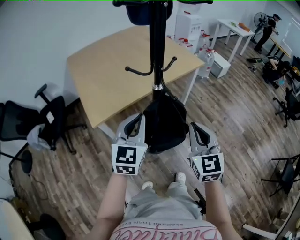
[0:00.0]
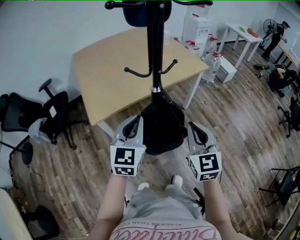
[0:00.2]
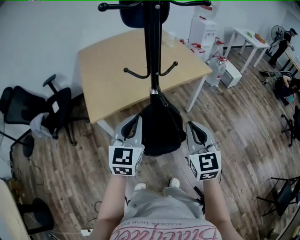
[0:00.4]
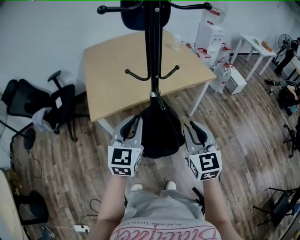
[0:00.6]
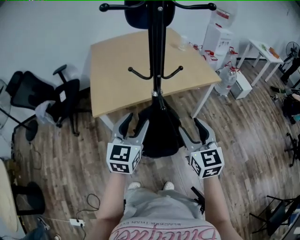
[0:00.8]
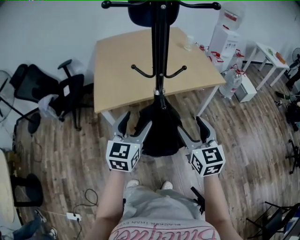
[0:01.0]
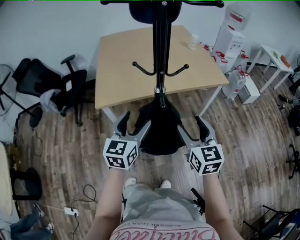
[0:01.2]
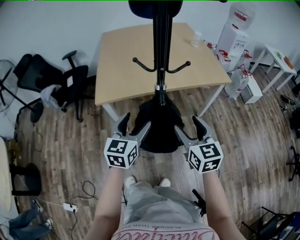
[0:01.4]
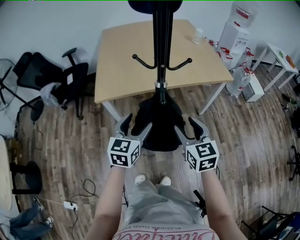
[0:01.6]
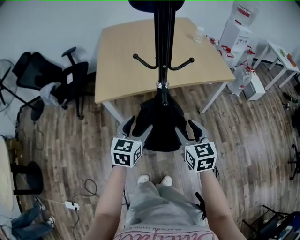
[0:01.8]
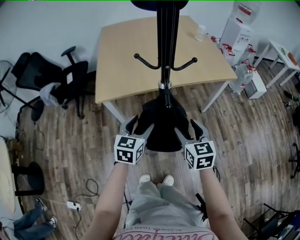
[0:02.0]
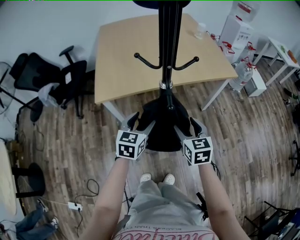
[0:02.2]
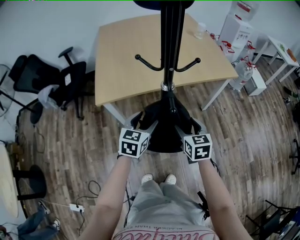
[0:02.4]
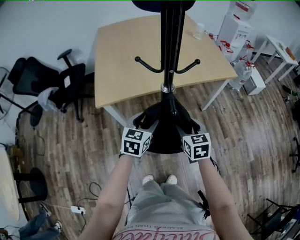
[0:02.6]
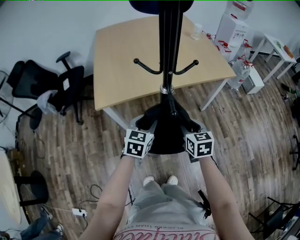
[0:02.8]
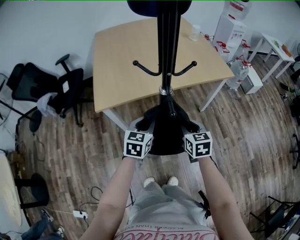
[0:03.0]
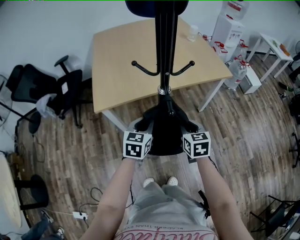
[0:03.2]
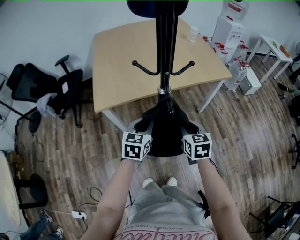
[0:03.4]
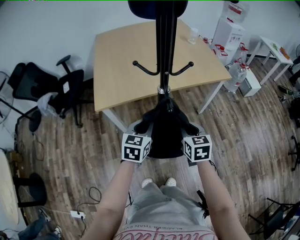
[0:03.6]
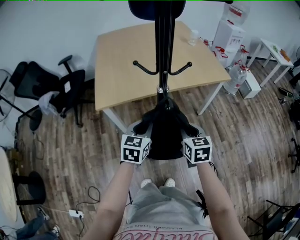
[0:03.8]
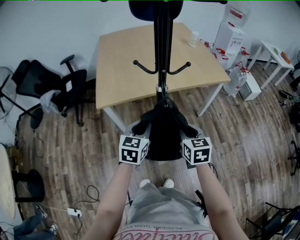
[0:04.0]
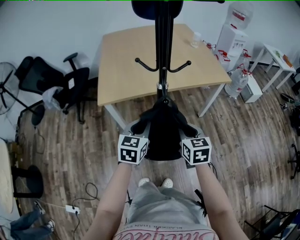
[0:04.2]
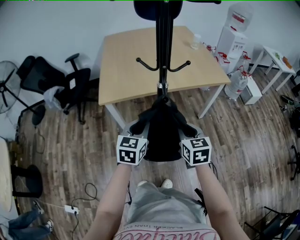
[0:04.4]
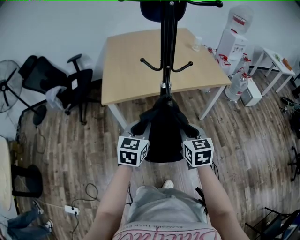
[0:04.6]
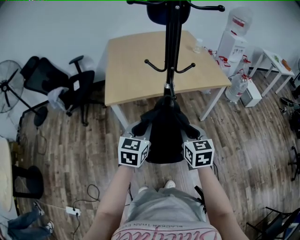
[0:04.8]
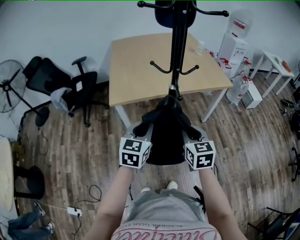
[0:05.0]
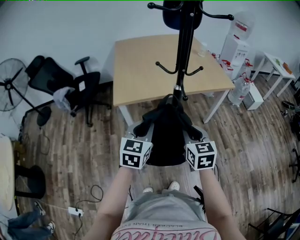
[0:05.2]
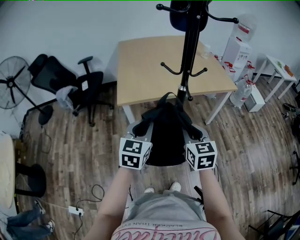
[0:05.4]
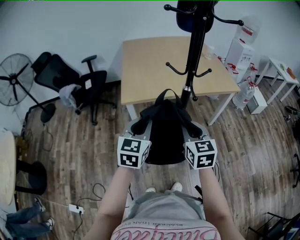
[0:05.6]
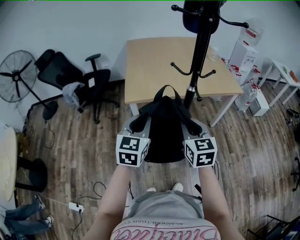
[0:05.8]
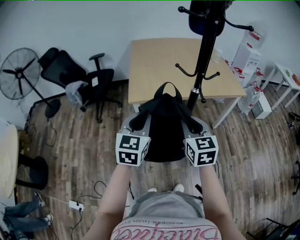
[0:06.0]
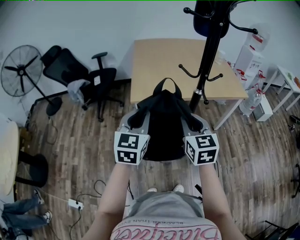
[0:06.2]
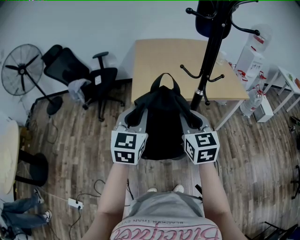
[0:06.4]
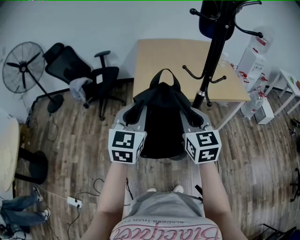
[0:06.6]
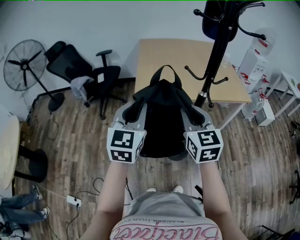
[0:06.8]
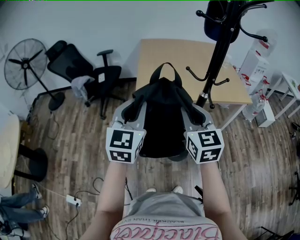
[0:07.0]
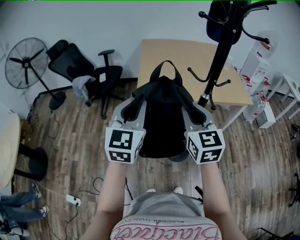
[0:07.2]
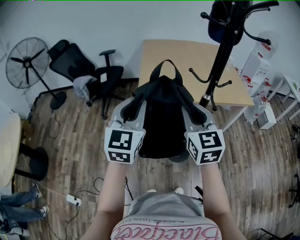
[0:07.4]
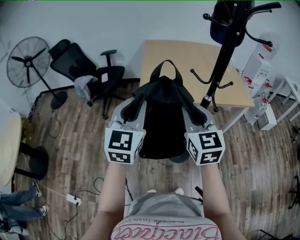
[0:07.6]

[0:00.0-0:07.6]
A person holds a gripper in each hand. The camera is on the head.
0:00.0 to 0:01.6: The right gripper travels forward and downward by some 10 cm, turns by roughly 30 degrees, and opens up. The left gripper heads downward, covering about 10 cm, turns by about 30 degrees, and opens.
0:01.6 to 0:03.0: The two grippers go approximately 10 cm downward and forward. The left gripper closes, while the right gripper closes up.
0:03.0 to 0:04.6: Both grippers travel together backward and upward, about 10 cm.
0:04.6 to 0:06.0: Both grippers move to the left and upward, about 15 cm.
0:06.0 to 0:07.6: The grippers both shift upward and to the left by about 10 cm.

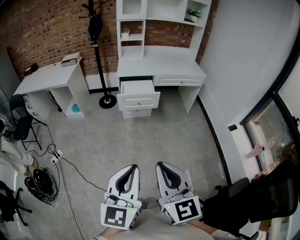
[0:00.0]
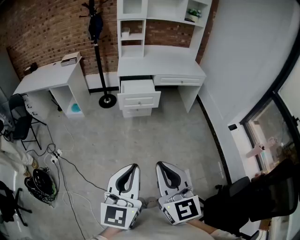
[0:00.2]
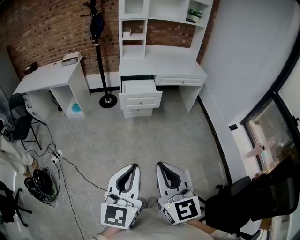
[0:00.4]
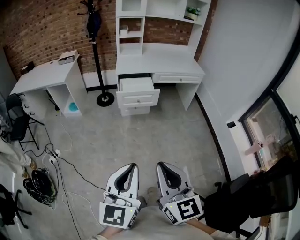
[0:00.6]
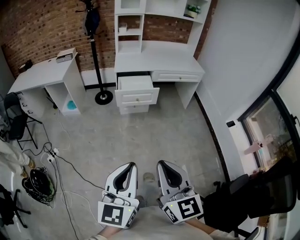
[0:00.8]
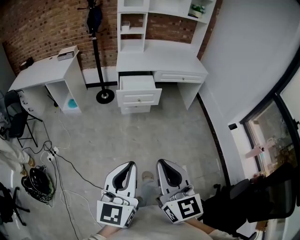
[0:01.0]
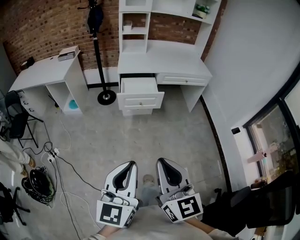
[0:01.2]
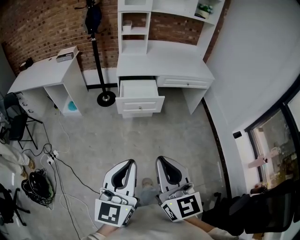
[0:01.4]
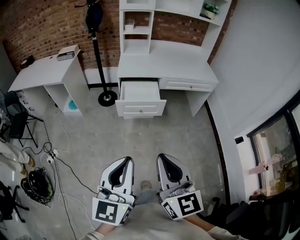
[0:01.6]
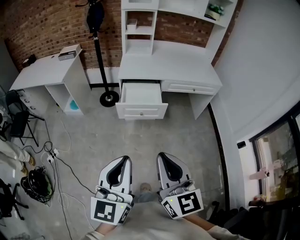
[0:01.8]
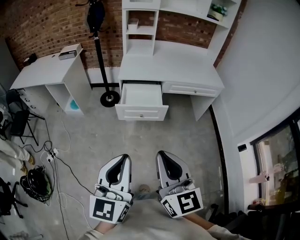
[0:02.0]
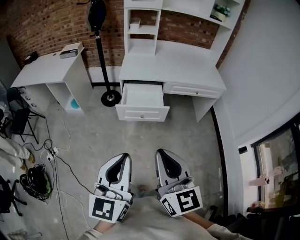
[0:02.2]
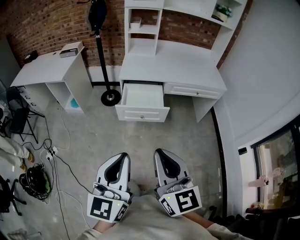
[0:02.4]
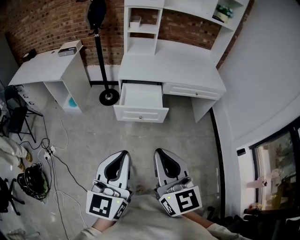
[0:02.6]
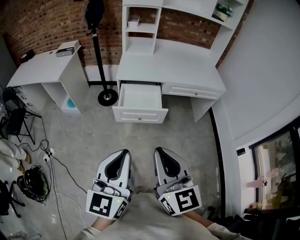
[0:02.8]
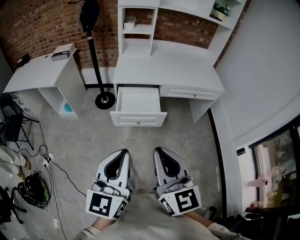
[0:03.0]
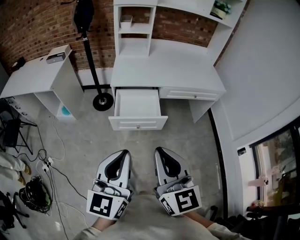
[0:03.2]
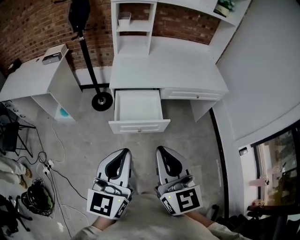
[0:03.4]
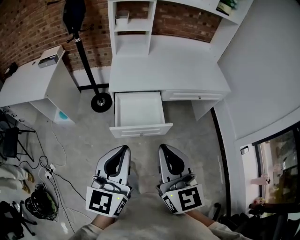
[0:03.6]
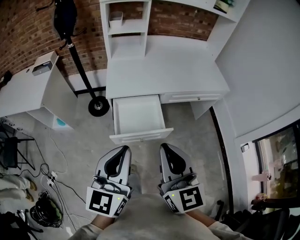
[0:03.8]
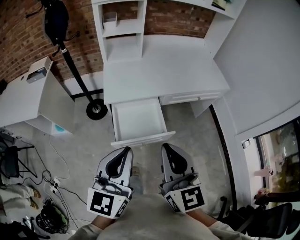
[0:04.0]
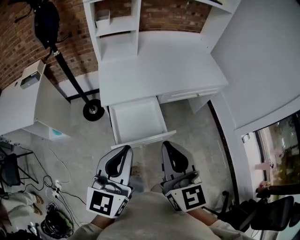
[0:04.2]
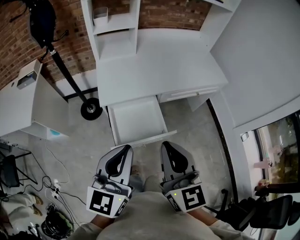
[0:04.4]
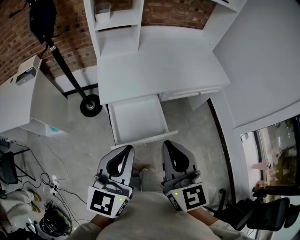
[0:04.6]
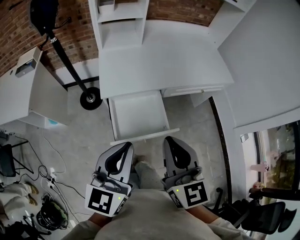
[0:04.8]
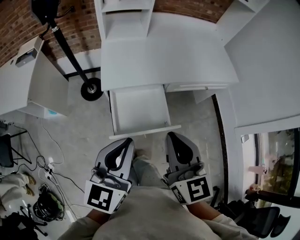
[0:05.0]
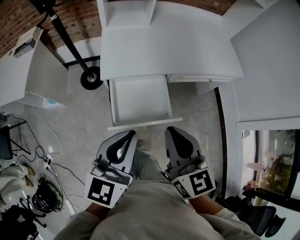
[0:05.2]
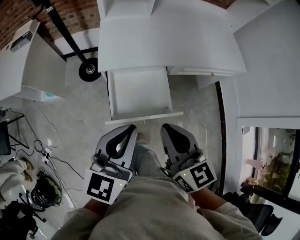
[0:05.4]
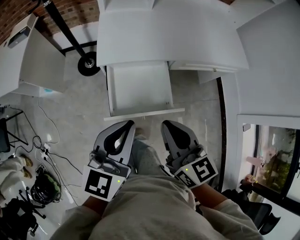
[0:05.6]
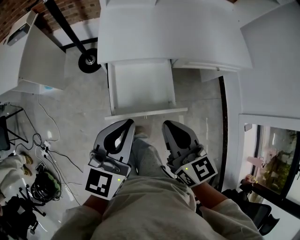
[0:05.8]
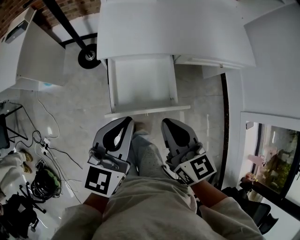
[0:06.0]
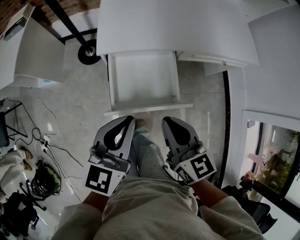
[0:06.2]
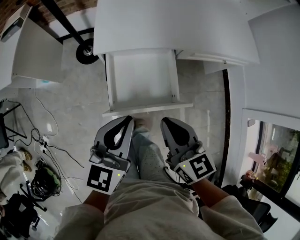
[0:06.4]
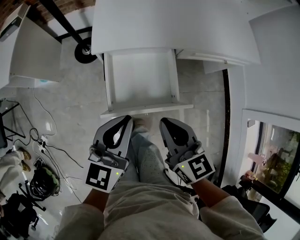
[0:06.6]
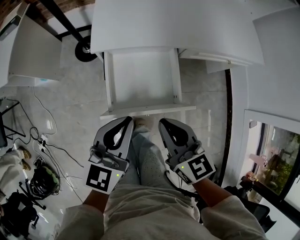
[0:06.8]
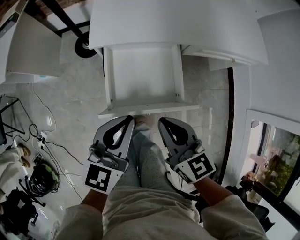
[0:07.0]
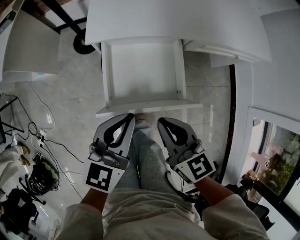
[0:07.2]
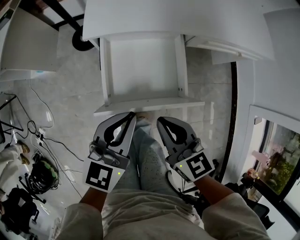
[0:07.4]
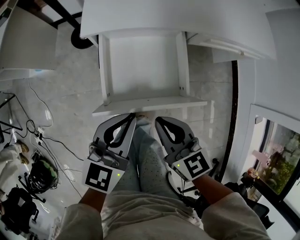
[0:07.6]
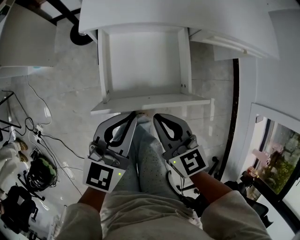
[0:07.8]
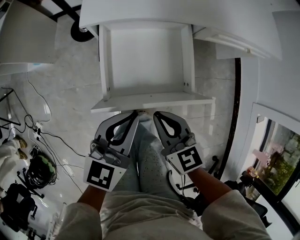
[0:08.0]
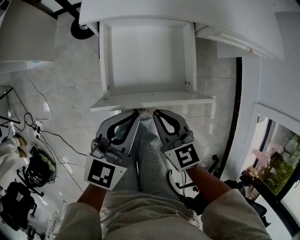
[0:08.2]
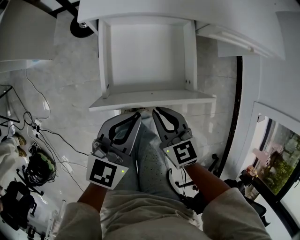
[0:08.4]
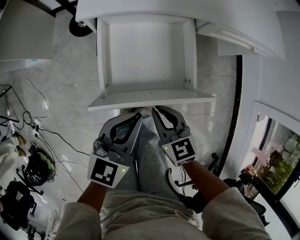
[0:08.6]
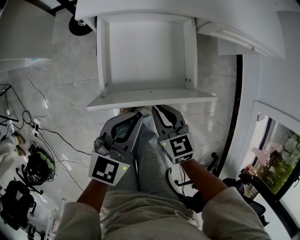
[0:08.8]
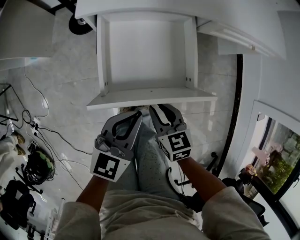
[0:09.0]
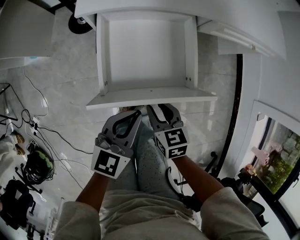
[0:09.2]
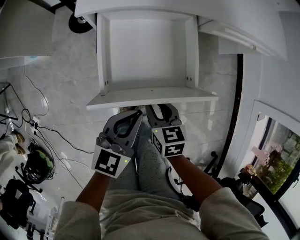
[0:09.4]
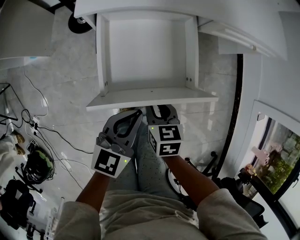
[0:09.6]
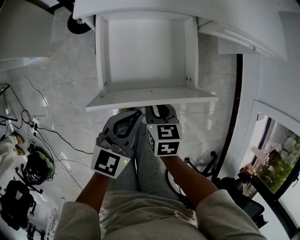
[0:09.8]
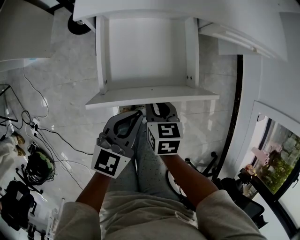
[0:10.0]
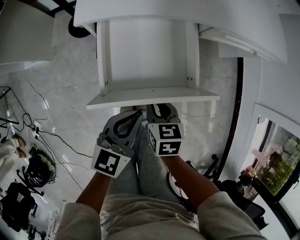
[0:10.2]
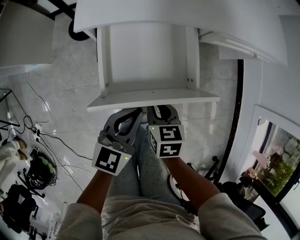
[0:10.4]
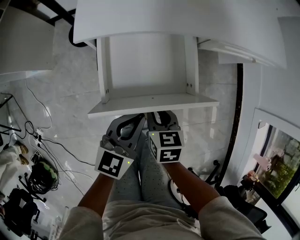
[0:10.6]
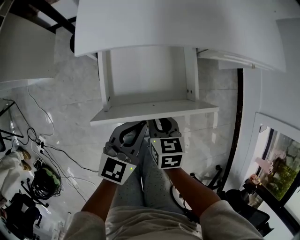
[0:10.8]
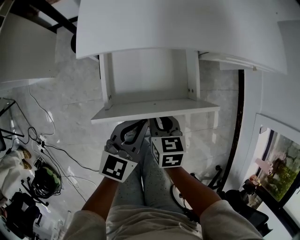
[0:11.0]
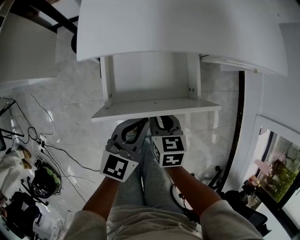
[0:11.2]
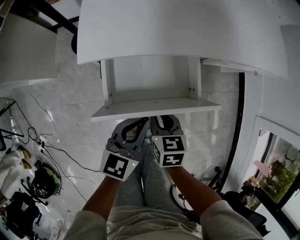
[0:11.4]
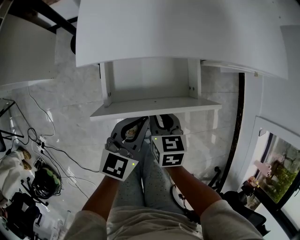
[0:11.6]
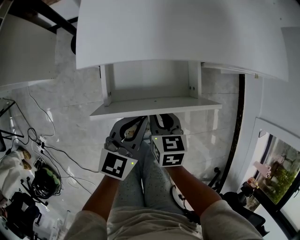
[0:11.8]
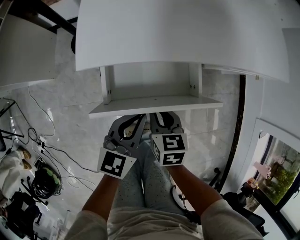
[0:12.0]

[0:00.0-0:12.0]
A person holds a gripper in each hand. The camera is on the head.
0:00.0 to 0:01.6: The two grippers go about 25 cm forward.
0:01.6 to 0:03.0: Both grippers move forward, roughly 15 cm.
0:03.0 to 0:04.4: Both grippers move forward, some 30 cm.
0:04.4 to 0:06.0: The right gripper shifts some 15 cm downward, and changes its angle by about 30 degrees. The left gripper shifts roughly 15 cm downward and forward.
0:06.0 to 0:07.6: The grippers both shift downward by some 15 cm.
0:07.6 to 0:09.0: The right gripper shifts roughly 15 cm downward; the left gripper travels downward by roughly 10 cm.
0:09.0 to 0:10.4: Both grippers travel together forward, some 5 cm.
0:10.4 to 0:12.0: Both grippers move forward, some 10 cm.

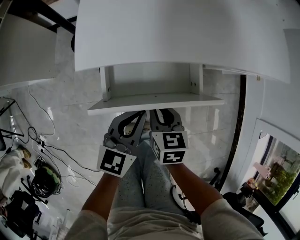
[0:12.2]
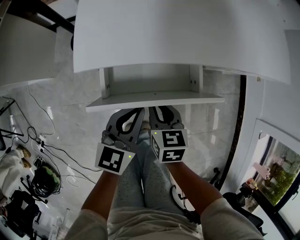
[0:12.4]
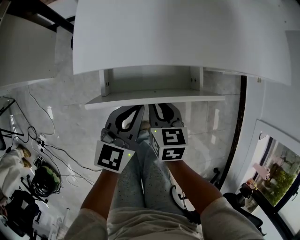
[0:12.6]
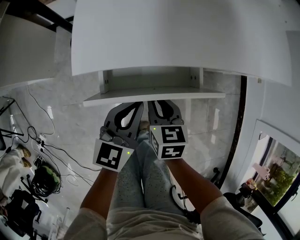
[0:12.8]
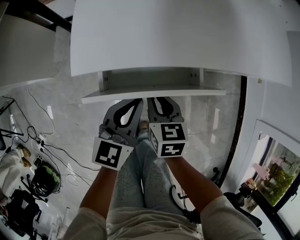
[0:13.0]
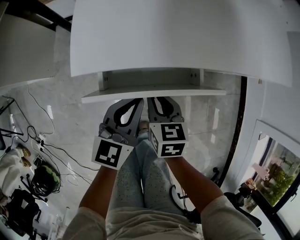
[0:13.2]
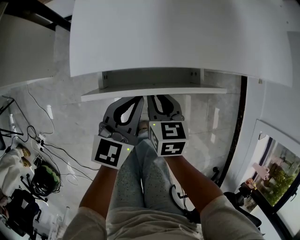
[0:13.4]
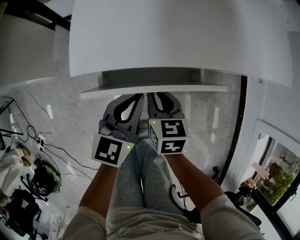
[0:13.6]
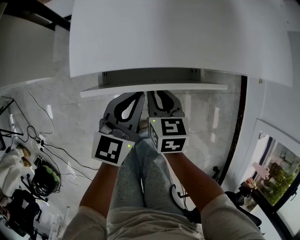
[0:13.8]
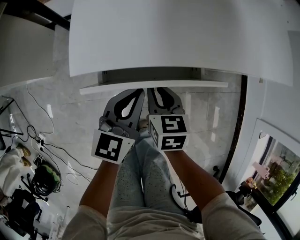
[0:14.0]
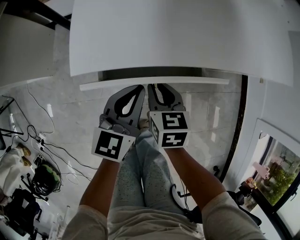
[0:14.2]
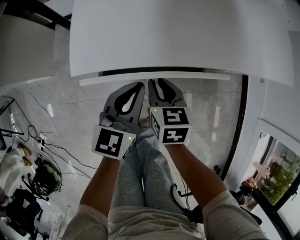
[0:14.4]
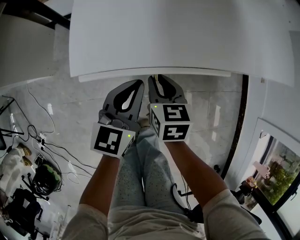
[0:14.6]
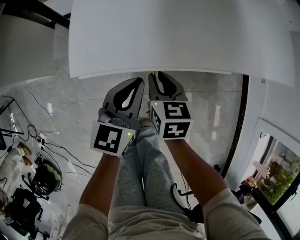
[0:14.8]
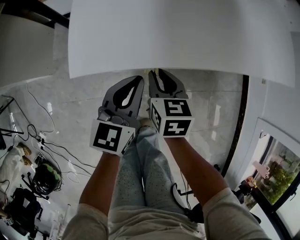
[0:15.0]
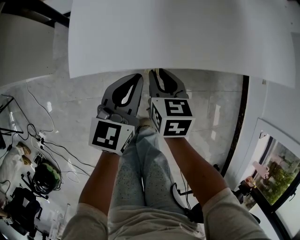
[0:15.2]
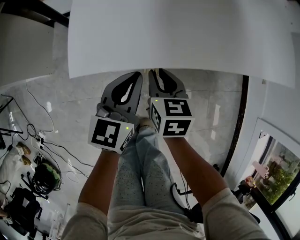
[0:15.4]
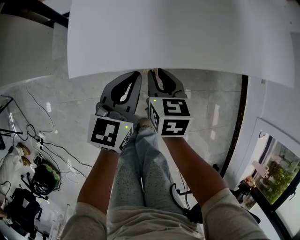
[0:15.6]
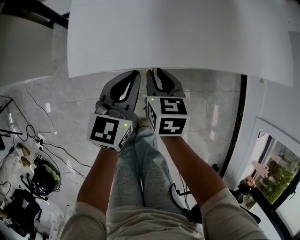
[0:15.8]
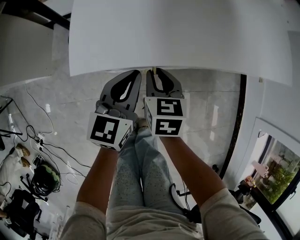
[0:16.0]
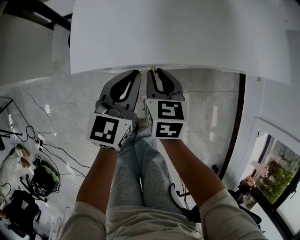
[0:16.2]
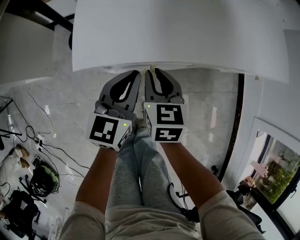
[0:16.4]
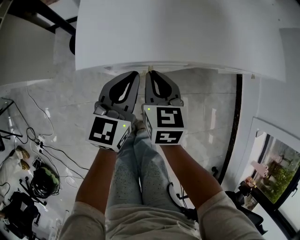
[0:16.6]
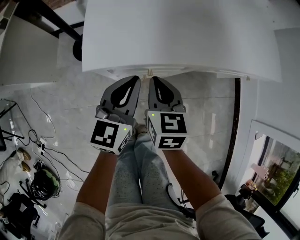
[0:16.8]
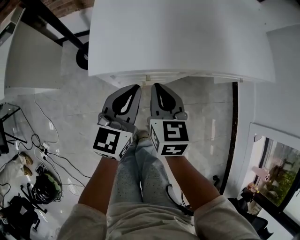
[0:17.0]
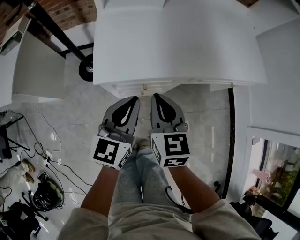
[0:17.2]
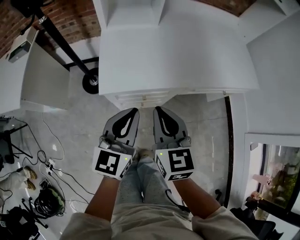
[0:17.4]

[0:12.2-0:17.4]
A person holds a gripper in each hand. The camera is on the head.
0:12.2 to 0:14.0: Both grippers travel together forward, roughly 5 cm.
0:14.0 to 0:15.6: The right gripper heads forward, covering approximately 5 cm.
0:15.6 to 0:17.4: The two grippers go some 25 cm upward. The right gripper rotates about 30 degrees.
